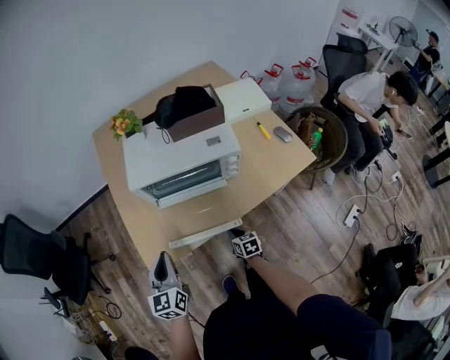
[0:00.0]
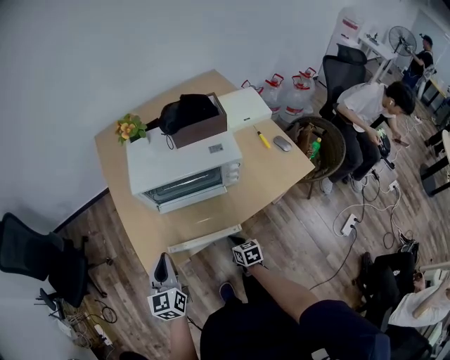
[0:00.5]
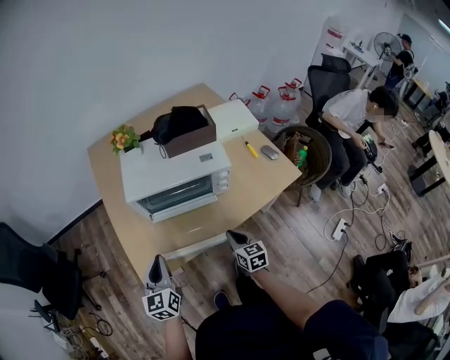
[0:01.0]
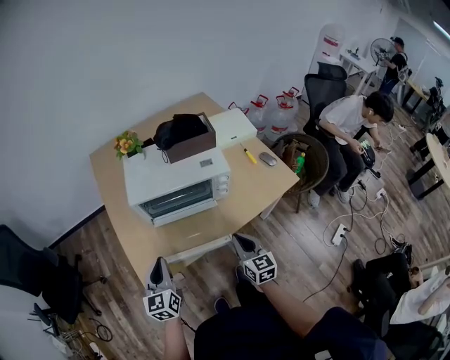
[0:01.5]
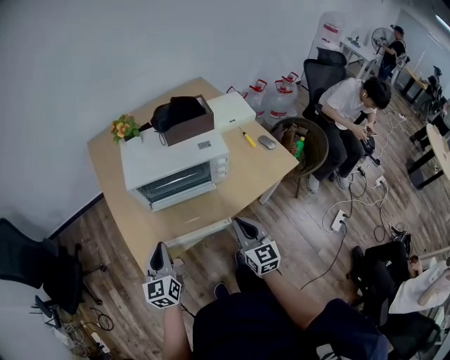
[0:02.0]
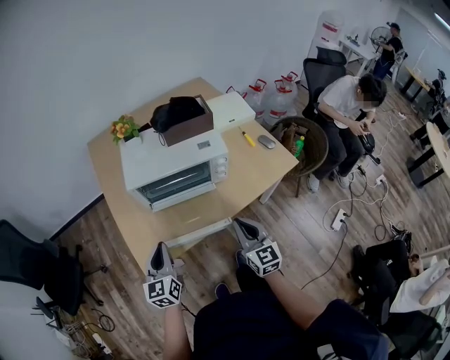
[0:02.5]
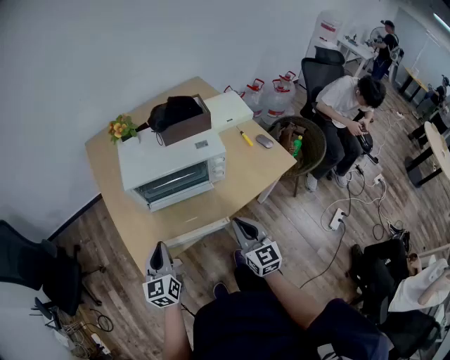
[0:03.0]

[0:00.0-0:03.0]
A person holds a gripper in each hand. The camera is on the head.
0:00.0 to 0:01.5: The right gripper heads upward, covering some 25 cm, and rotates roughly 30 degrees.
0:01.5 to 0:03.0: The right gripper is displaced upward by roughly 5 cm.

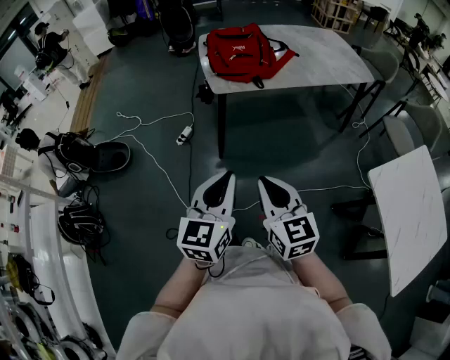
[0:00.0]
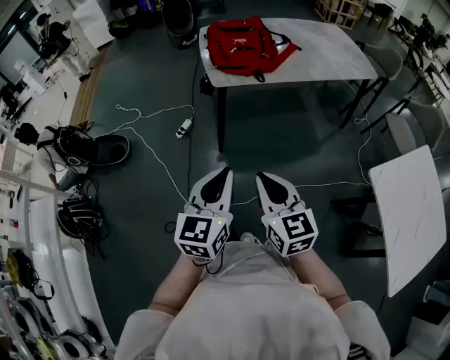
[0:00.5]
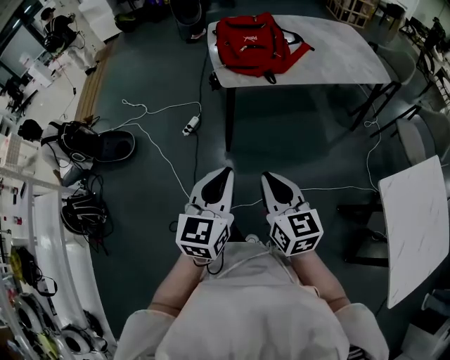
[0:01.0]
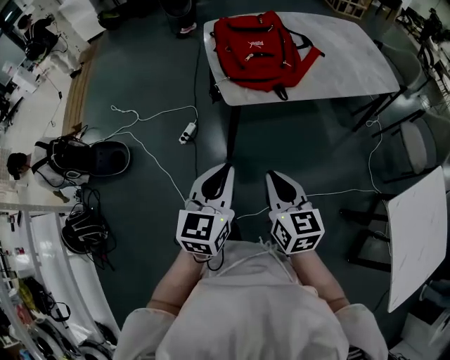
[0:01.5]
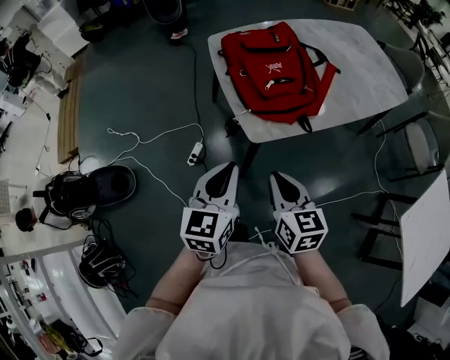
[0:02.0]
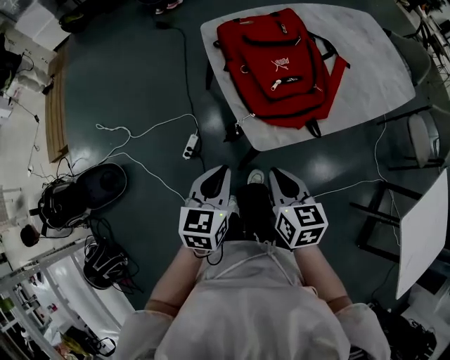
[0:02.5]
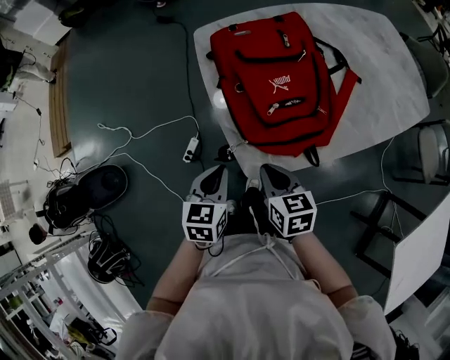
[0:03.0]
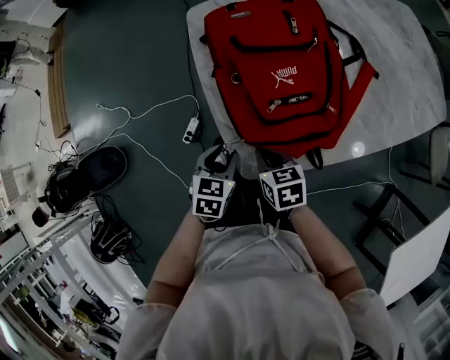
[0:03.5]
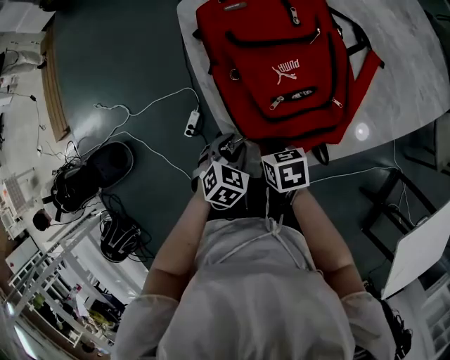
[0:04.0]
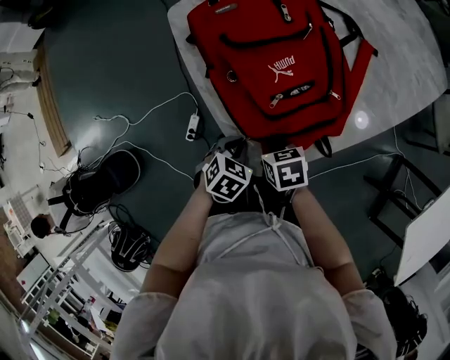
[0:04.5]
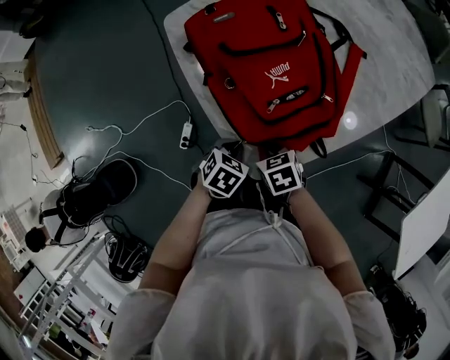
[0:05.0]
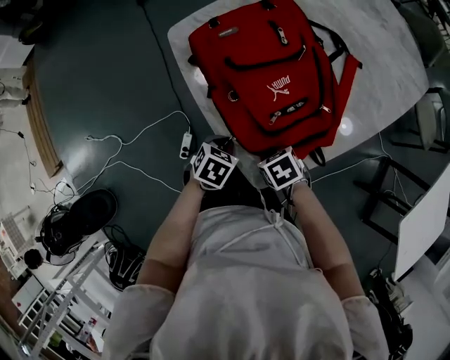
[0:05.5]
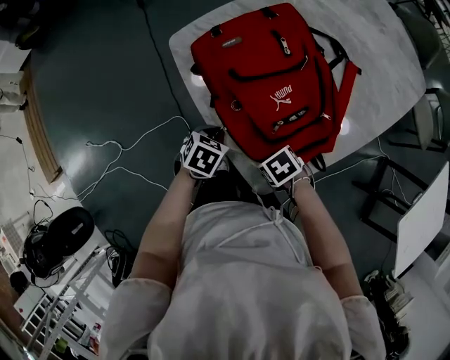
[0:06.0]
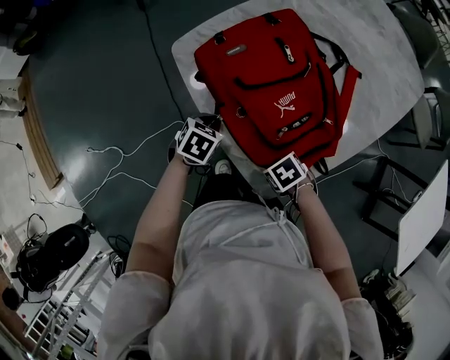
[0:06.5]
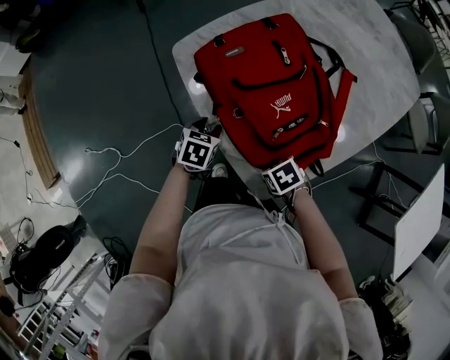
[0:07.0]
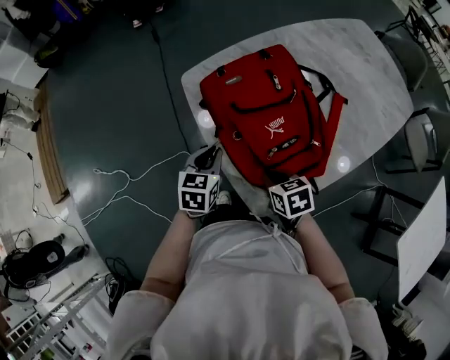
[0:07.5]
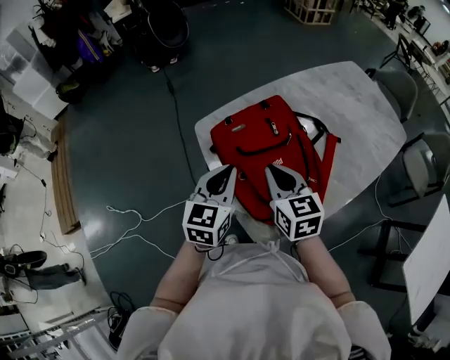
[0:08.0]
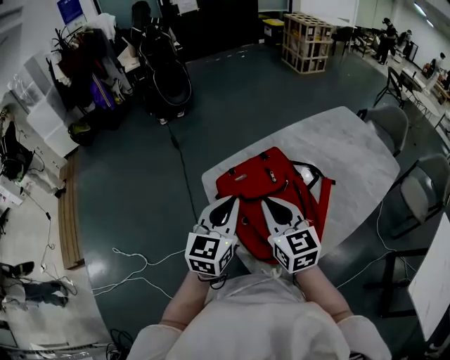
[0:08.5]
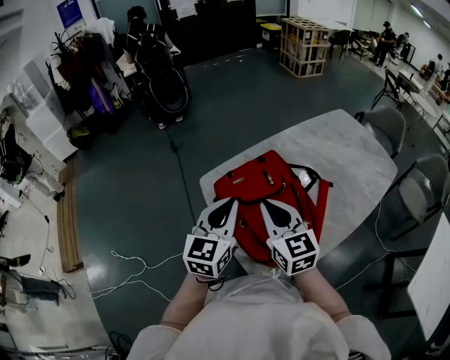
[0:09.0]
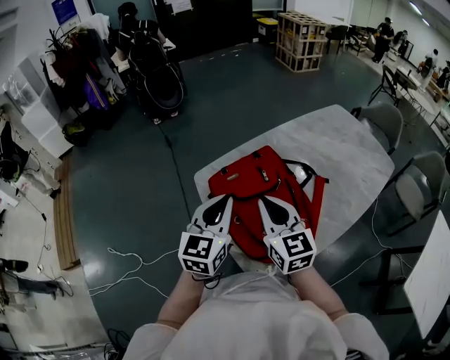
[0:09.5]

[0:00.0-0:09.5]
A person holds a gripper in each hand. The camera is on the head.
0:00.0 to 0:02.0: The right gripper is displaced forward by roughly 35 cm, and changes its angle by approximately 20 degrees; the left gripper goes approximately 40 cm forward and to the left.
0:02.0 to 0:04.0: The right gripper heads forward and downward, covering approximately 35 cm, and tips its fingers downward by about 30 degrees. The left gripper goes some 35 cm downward and forward, angles its fingers downward, by approximately 40 degrees, and opens up.
0:04.0 to 0:05.5: The left gripper travels forward by some 5 cm, and closes up.
0:05.5 to 0:07.5: The grippers both shift upward by approximately 10 cm. The right gripper rotates some 20 degrees. Meanwhile the left gripper rotates some 30 degrees, and opens, then closes again.
0:07.5 to 0:09.5: The two grippers go some 25 cm upward. The right gripper angles its fingers upward, by roughly 50 degrees. Meanwhile the left gripper swivels roughly 30 degrees.

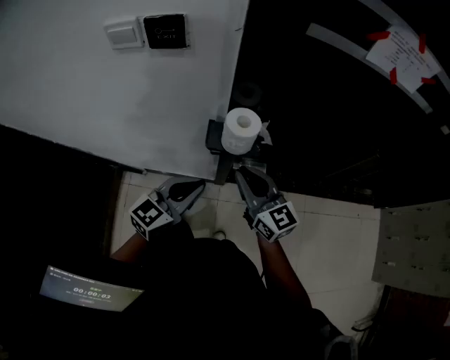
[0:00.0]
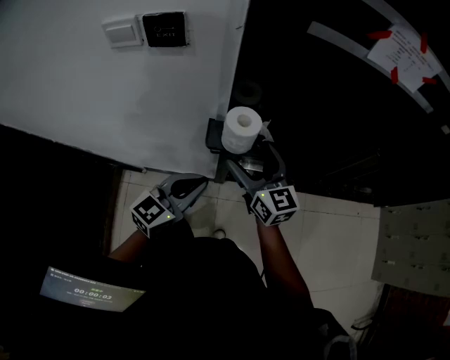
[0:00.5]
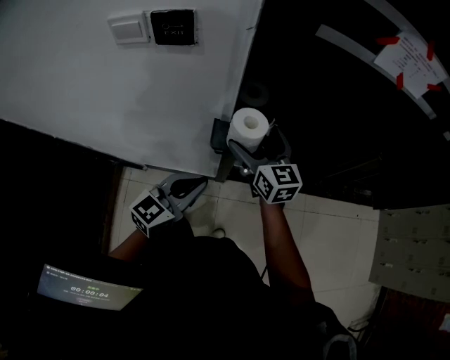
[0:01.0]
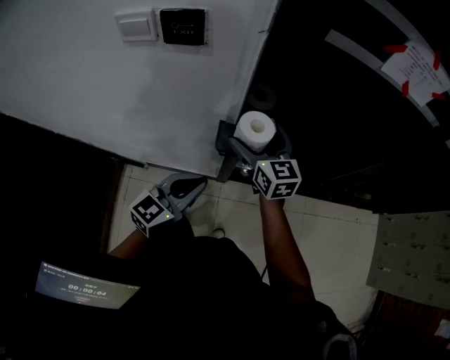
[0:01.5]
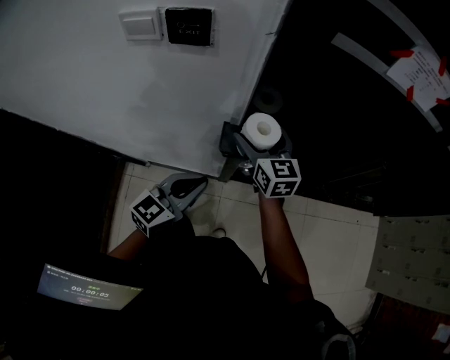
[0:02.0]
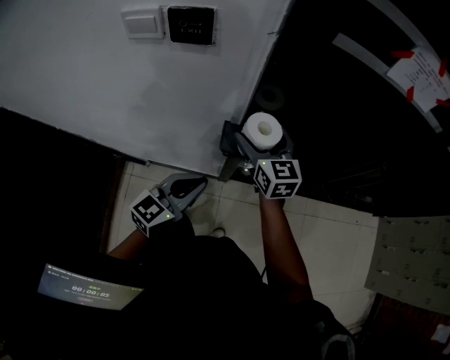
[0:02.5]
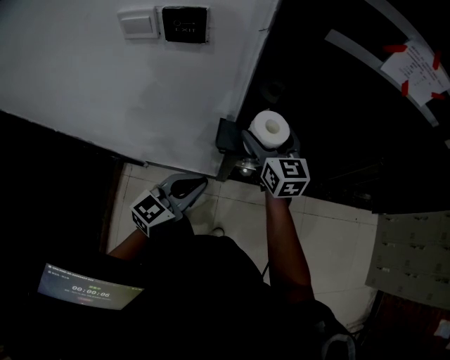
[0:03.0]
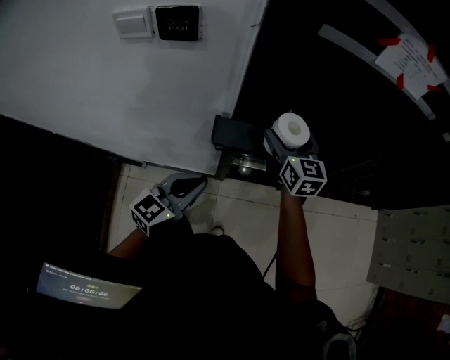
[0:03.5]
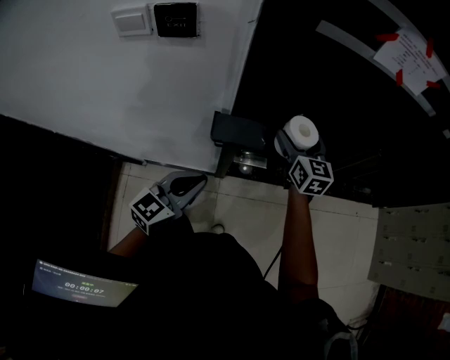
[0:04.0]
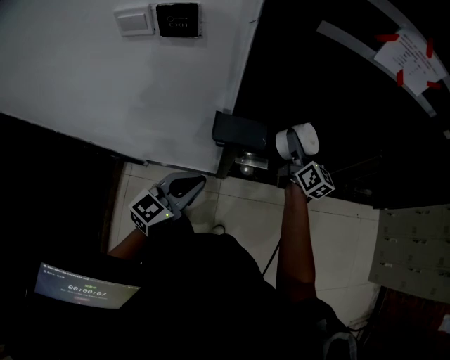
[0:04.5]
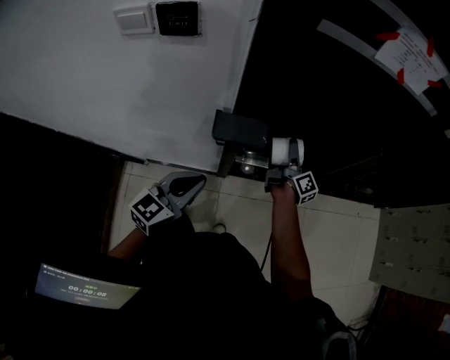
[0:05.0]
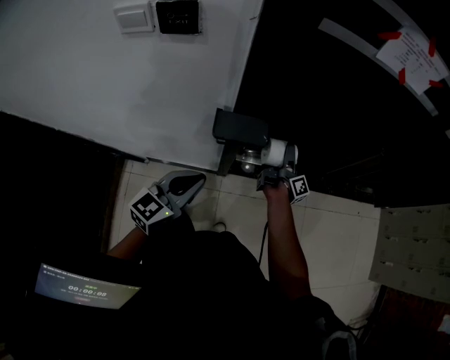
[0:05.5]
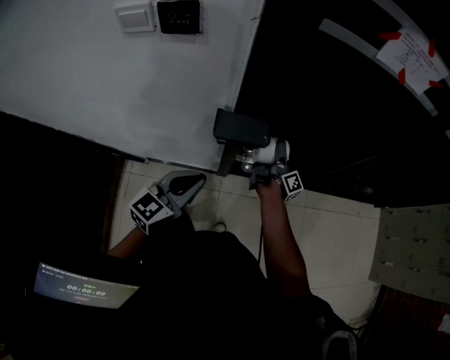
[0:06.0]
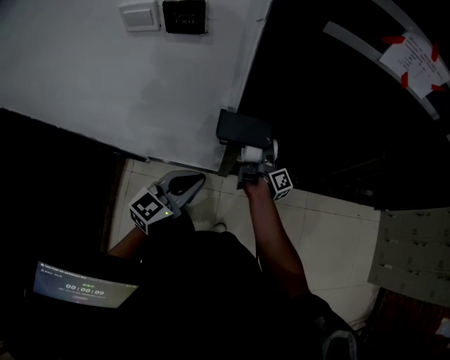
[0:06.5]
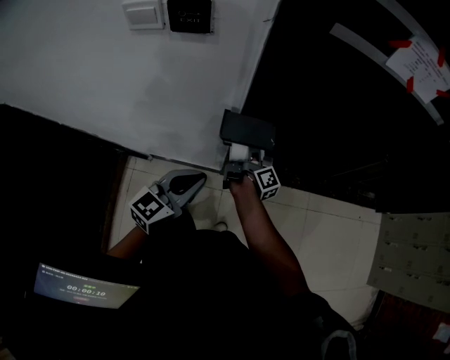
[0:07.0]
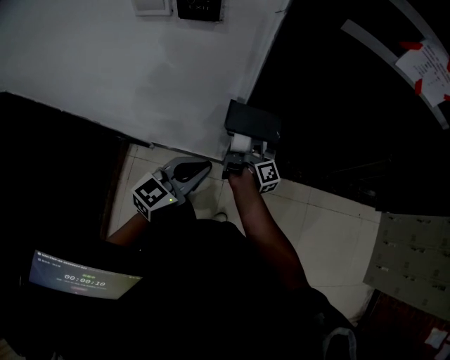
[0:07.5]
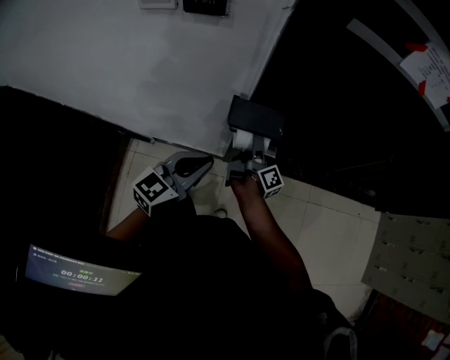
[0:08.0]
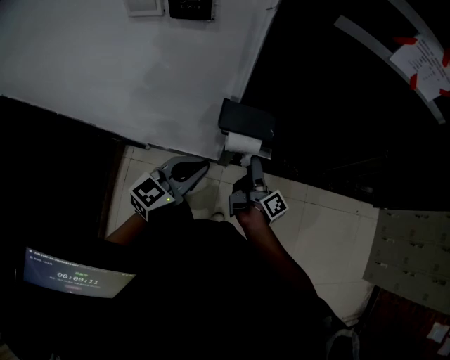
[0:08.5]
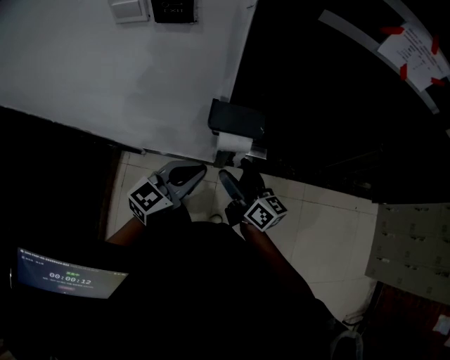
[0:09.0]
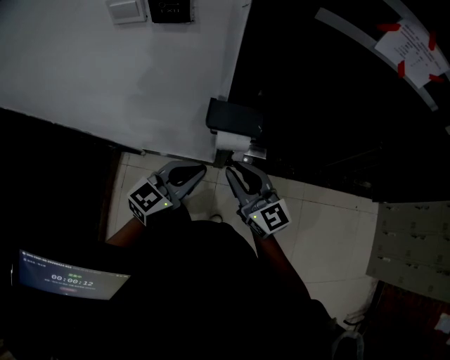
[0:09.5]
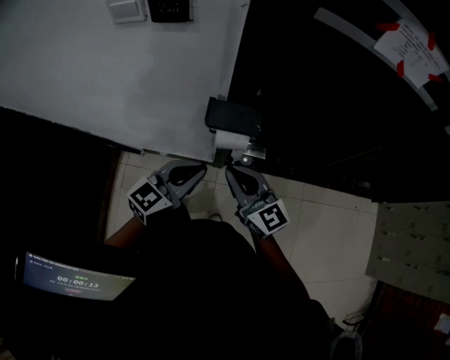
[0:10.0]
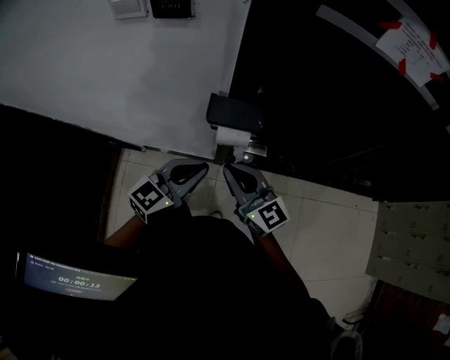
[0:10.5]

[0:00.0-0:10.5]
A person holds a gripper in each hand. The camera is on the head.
0:00.0 to 0:02.0: The right gripper goes some 15 cm forward, and opens up.
0:02.0 to 0:04.0: The right gripper is displaced to the right by approximately 15 cm.
0:04.0 to 0:06.5: The right gripper heads downward, covering about 20 cm, and twists some 90 degrees clockwise, seen from behind.
0:06.5 to 0:08.5: The right gripper travels backward by about 10 cm.
0:08.5 to 0:10.5: The right gripper travels upward, backward and to the left by some 15 cm, twists approximately 80 degrees counterclockwise, seen from behind, and closes up.

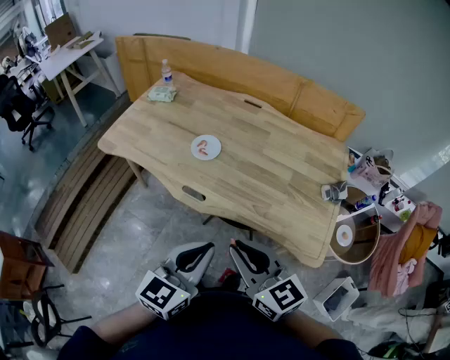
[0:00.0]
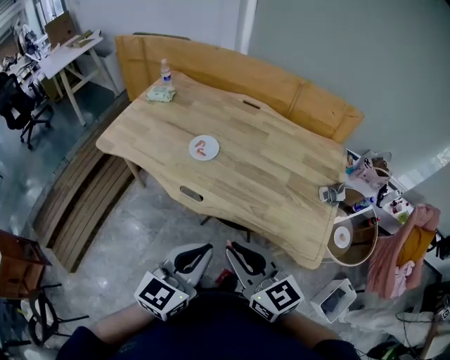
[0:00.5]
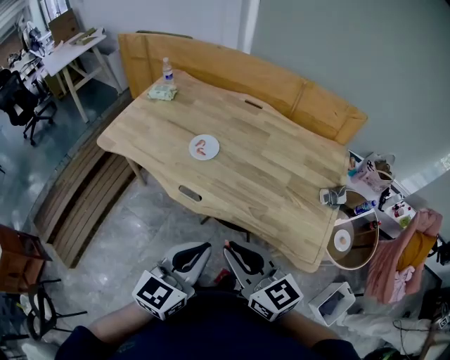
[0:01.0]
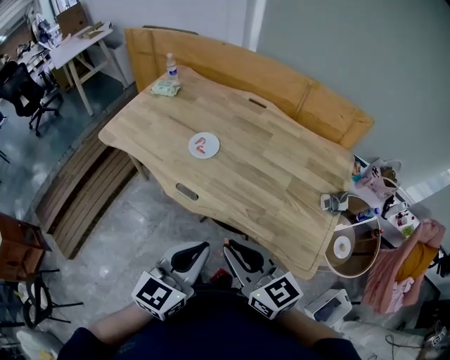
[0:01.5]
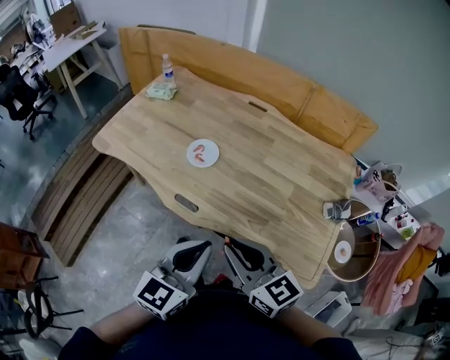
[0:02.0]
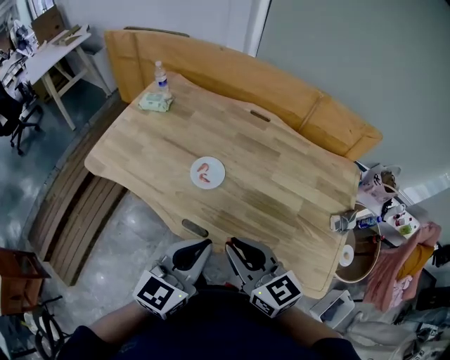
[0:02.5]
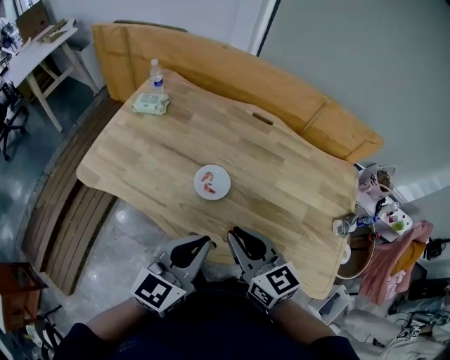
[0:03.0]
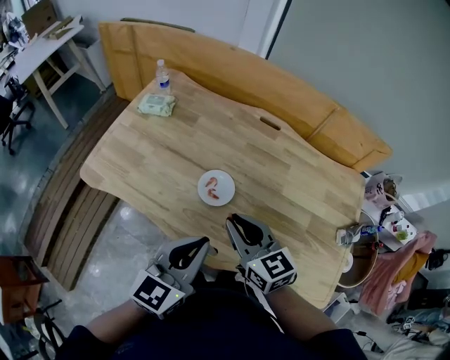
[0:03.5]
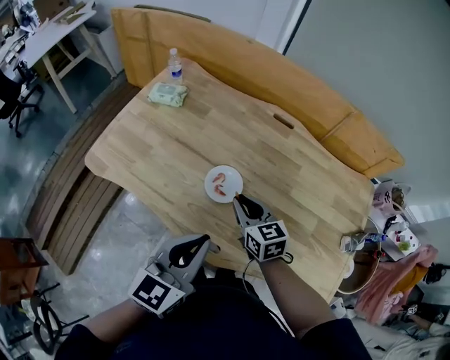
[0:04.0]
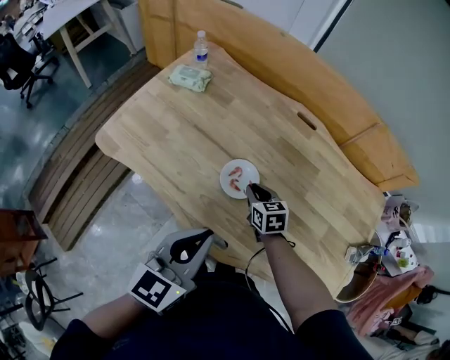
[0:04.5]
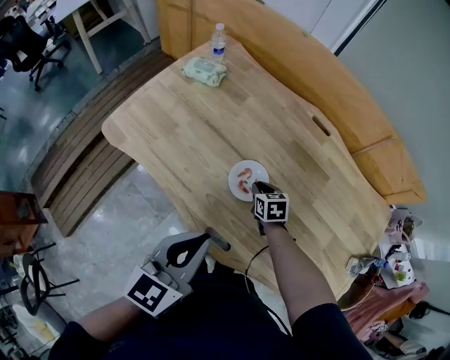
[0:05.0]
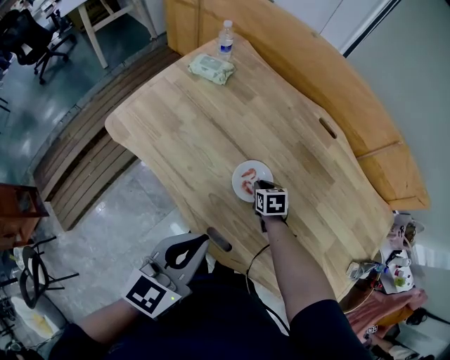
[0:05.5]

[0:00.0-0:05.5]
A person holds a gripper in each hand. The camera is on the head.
0:00.0 to 0:02.0: The grippers both shift forward by about 10 cm.
0:02.0 to 0:03.5: Both grippers travel together forward and to the left, about 25 cm.
0:03.5 to 0:05.5: The right gripper goes about 35 cm downward and forward, and tilts its fingers approximately 40 degrees downward. The left gripper goes about 5 cm to the left.
